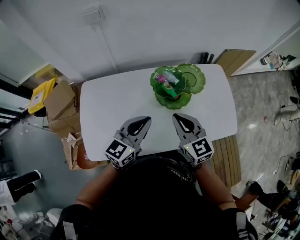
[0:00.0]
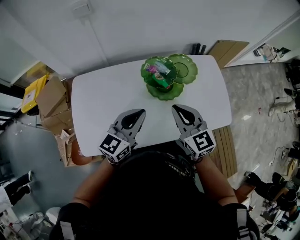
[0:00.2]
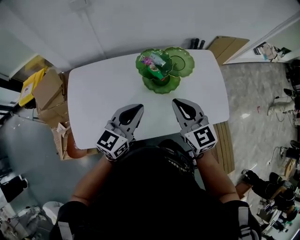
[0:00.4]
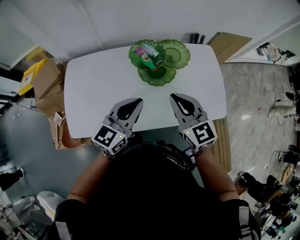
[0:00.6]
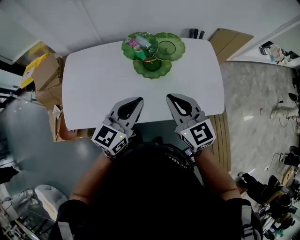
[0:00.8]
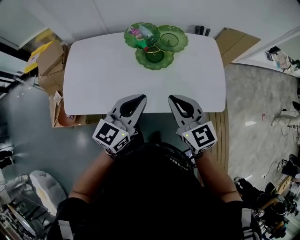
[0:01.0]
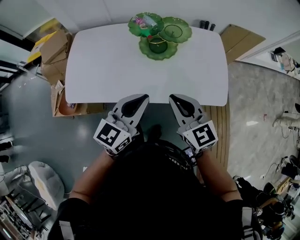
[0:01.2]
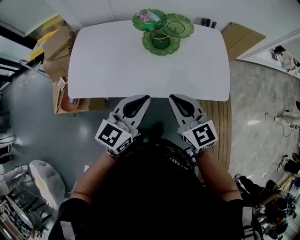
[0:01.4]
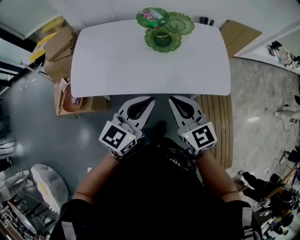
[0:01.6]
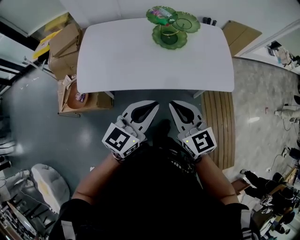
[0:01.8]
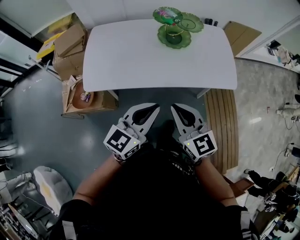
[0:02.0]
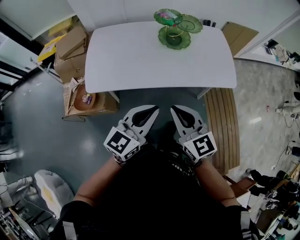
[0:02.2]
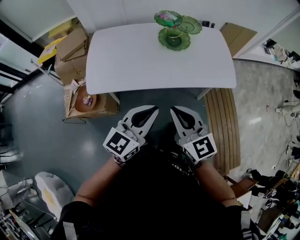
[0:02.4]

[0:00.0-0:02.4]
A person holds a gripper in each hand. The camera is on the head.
0:00.0 to 0:01.2: Both grippers travel together backward and to the right, some 25 cm.
0:01.2 to 0:02.4: The grippers both shift backward and to the left by roughly 25 cm.

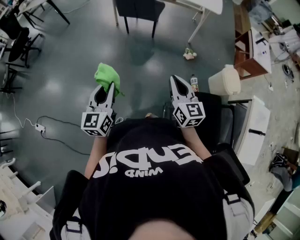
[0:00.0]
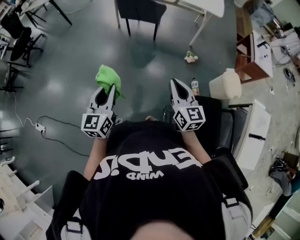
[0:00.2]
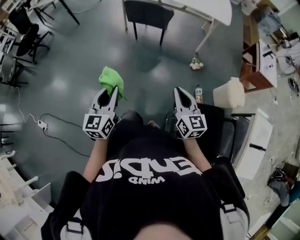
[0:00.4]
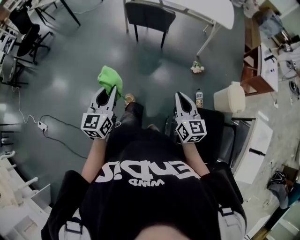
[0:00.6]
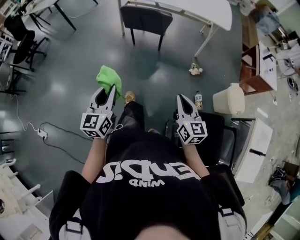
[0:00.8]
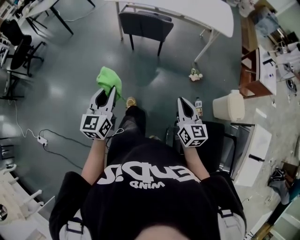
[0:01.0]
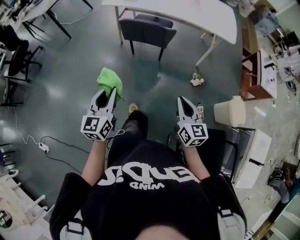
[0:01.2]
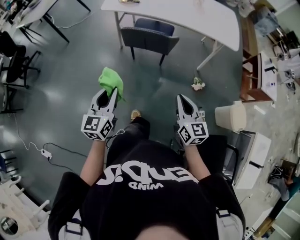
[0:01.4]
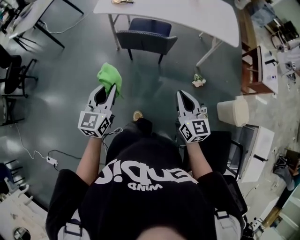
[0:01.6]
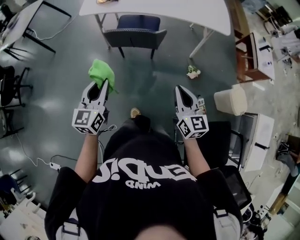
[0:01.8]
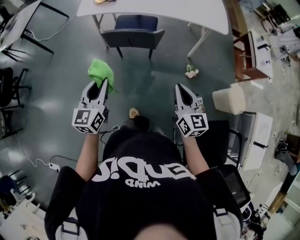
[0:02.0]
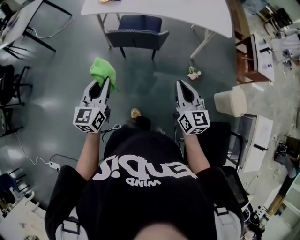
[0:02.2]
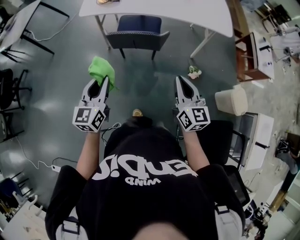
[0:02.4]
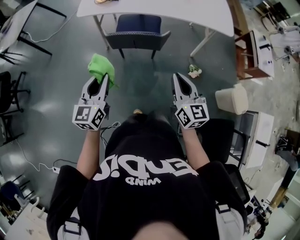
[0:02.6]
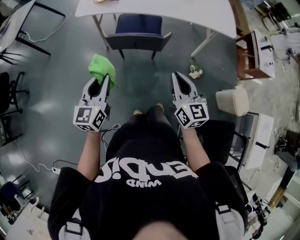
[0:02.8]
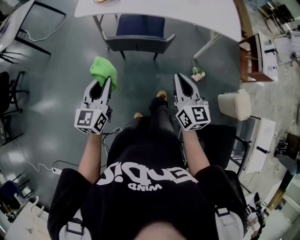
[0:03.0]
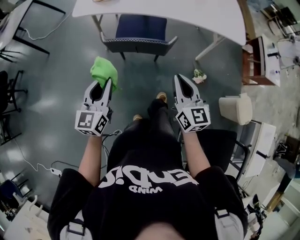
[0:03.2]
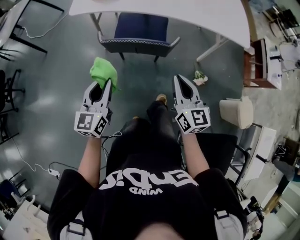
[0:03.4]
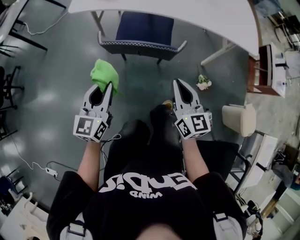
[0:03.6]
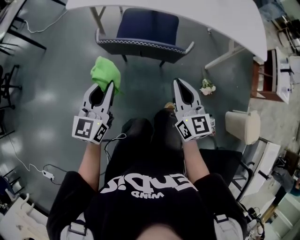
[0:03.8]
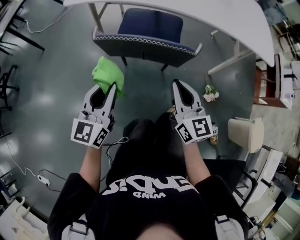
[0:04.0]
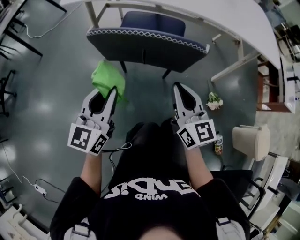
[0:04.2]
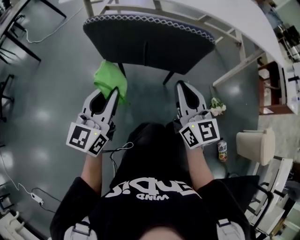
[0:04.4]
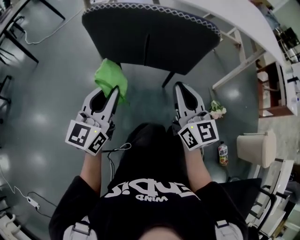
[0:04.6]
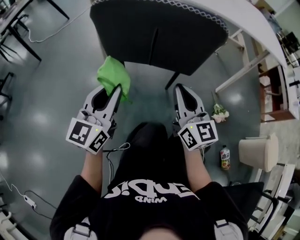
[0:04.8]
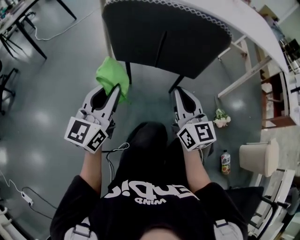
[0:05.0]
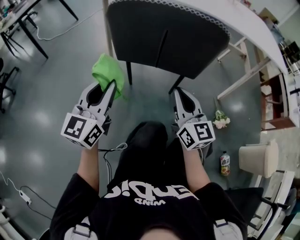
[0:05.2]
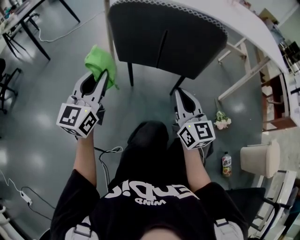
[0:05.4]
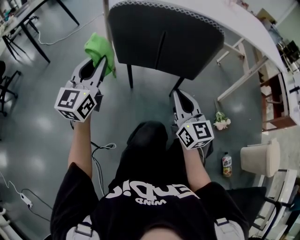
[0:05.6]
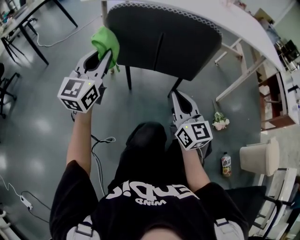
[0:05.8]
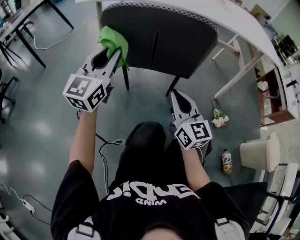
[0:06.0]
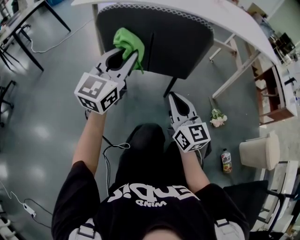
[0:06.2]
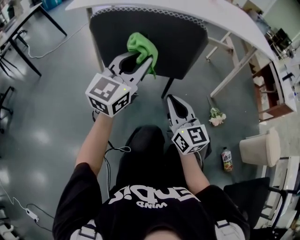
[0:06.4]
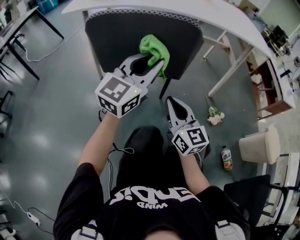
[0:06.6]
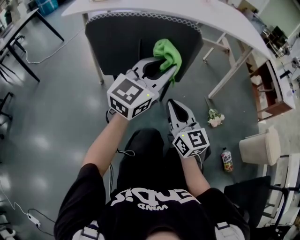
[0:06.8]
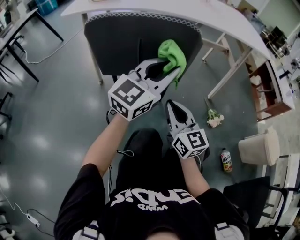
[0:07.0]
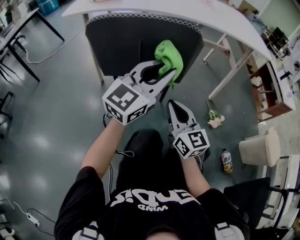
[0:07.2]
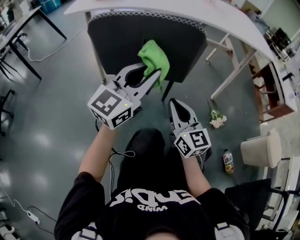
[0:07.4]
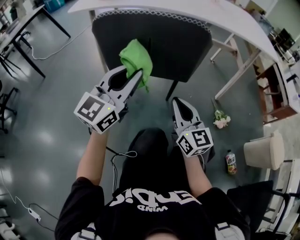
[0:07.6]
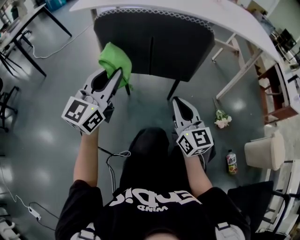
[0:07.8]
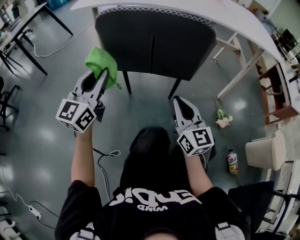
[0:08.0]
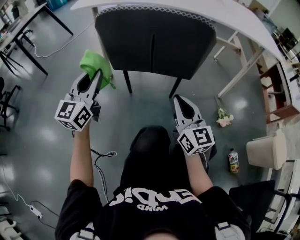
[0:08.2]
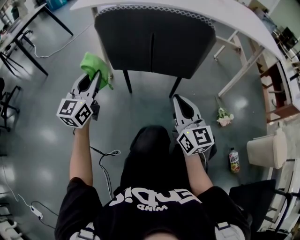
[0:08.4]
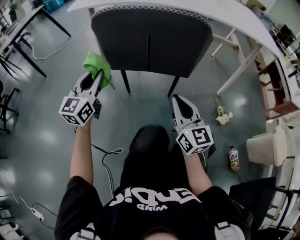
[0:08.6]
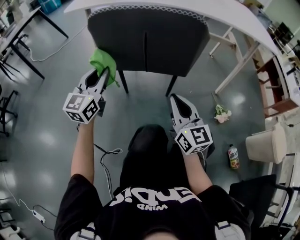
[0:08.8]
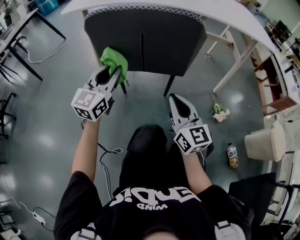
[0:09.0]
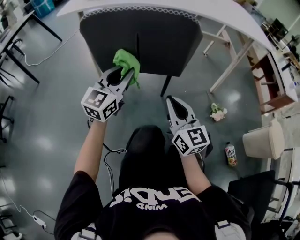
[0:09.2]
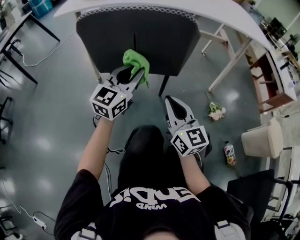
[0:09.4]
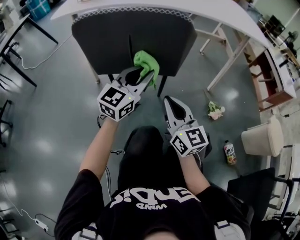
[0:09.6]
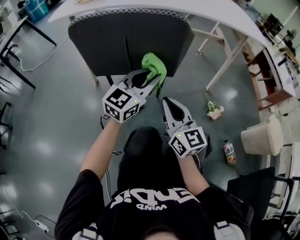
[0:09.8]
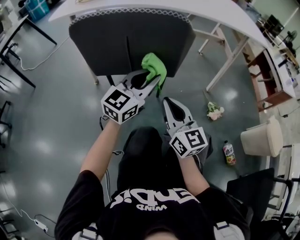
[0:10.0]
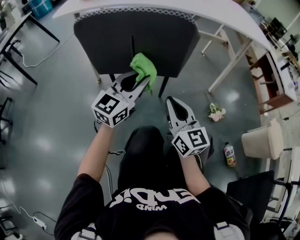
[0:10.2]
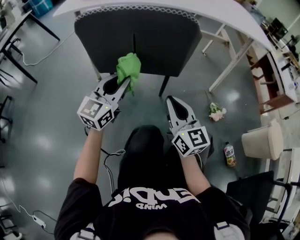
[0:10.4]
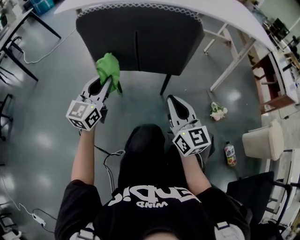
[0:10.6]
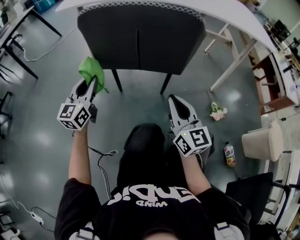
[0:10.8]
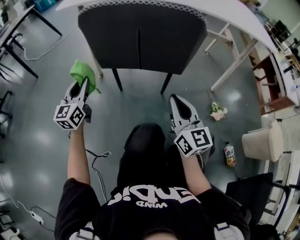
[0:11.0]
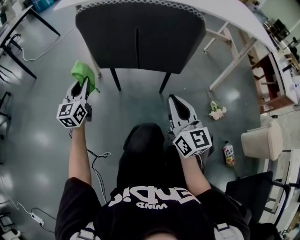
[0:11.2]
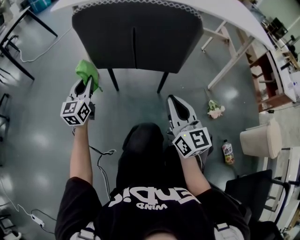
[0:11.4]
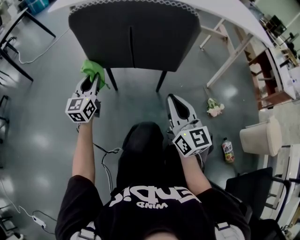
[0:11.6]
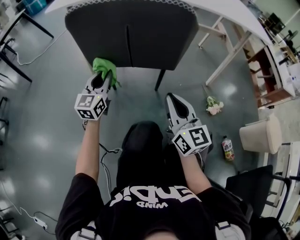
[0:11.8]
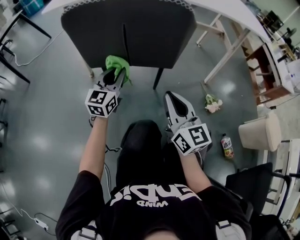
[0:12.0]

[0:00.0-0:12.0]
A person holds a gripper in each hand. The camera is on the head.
0:00.0 to 0:01.6: Both grippers travel together forward, roughly 40 cm.
0:01.6 to 0:03.0: The two grippers go roughly 15 cm forward.
0:03.0 to 0:04.4: The left gripper travels downward by some 30 cm. Meanwhile the right gripper heads downward and forward, covering roughly 35 cm.
0:04.4 to 0:06.0: The right gripper is displaced downward by approximately 5 cm. Meanwhile the left gripper heads forward, covering roughly 5 cm.
0:06.0 to 0:07.6: The left gripper moves to the right, some 10 cm.
0:07.6 to 0:09.0: The left gripper shifts approximately 5 cm downward, and travels to the left and back again, roughly 15 cm each way.
0:09.0 to 0:10.4: The left gripper reaches roughly 15 cm to the right, then returns.
0:10.4 to 0:12.0: The left gripper travels downward by roughly 5 cm, and reaches some 20 cm to the left, then returns.

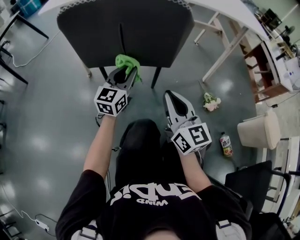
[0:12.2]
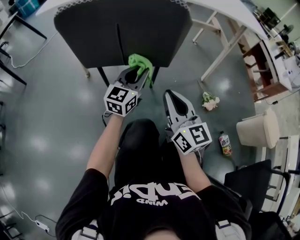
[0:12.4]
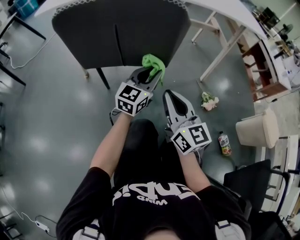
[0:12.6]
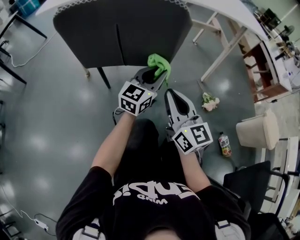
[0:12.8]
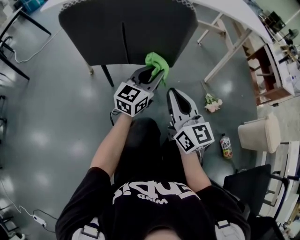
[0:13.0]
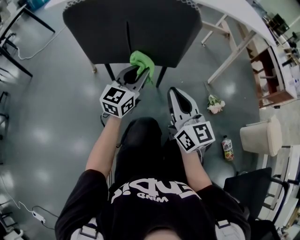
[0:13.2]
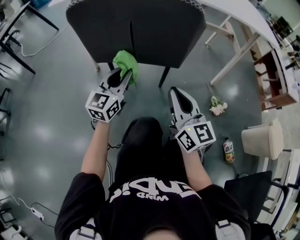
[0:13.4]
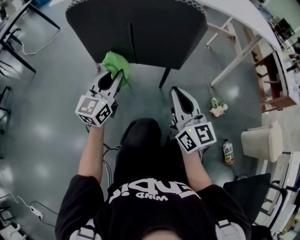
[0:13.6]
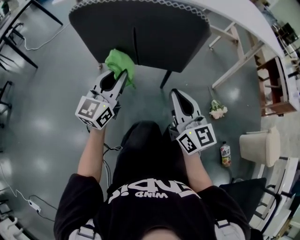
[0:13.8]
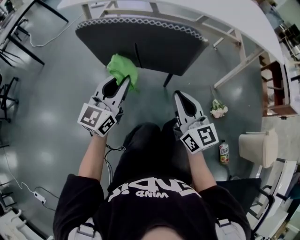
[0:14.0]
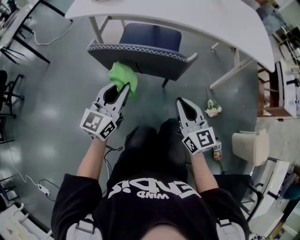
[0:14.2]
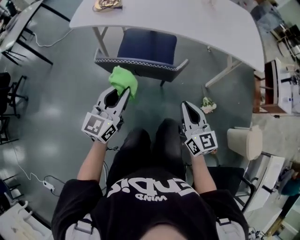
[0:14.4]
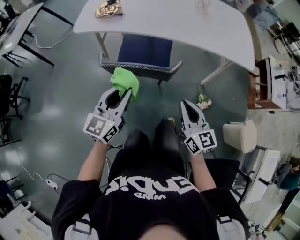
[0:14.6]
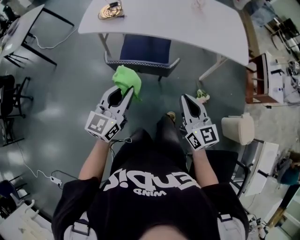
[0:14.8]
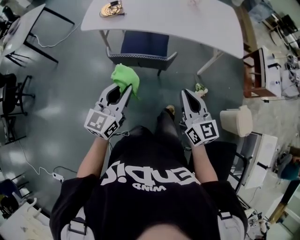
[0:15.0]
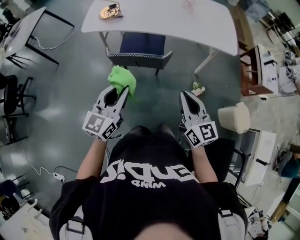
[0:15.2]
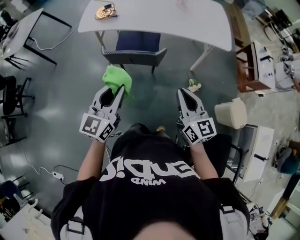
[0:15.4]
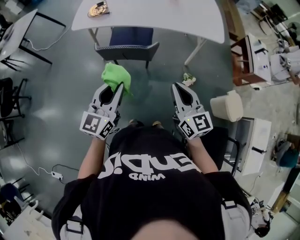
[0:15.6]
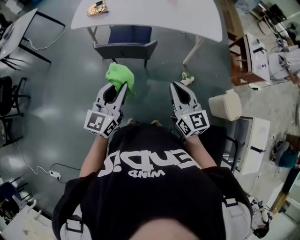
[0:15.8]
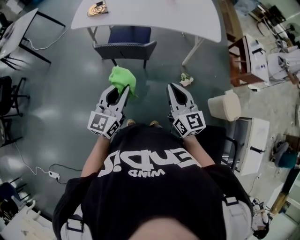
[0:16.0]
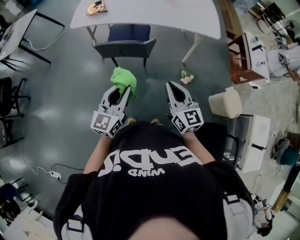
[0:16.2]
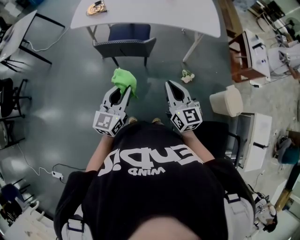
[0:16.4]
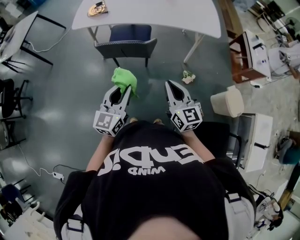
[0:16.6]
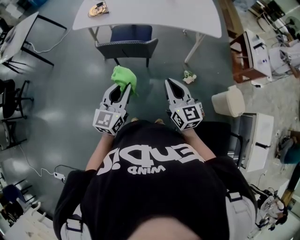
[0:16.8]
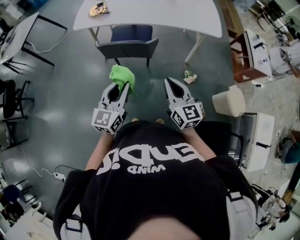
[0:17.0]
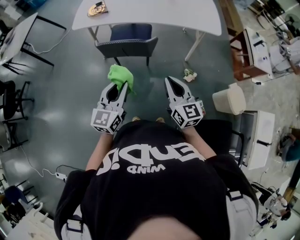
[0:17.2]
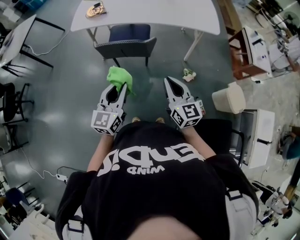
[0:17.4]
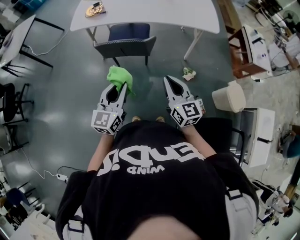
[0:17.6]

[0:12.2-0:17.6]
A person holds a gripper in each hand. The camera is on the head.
0:12.2 to 0:13.6: The left gripper moves to the left, about 5 cm.
0:13.6 to 0:15.0: The two grippers go approximately 40 cm upward.
0:15.0 to 0:16.2: The grippers both shift backward and to the right by roughly 15 cm.
0:16.2 to 0:17.6: There are only small adjustments of the grippers.

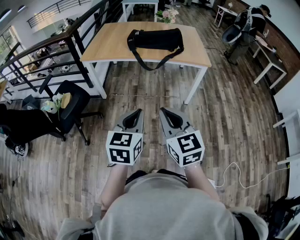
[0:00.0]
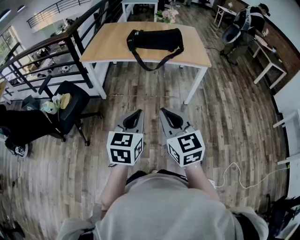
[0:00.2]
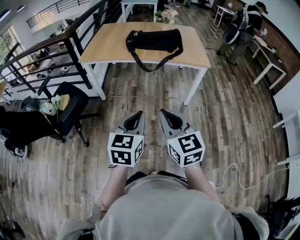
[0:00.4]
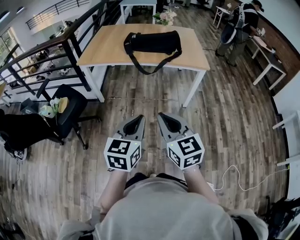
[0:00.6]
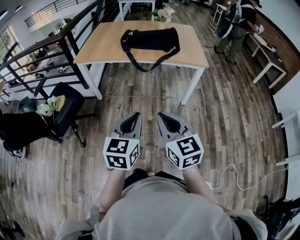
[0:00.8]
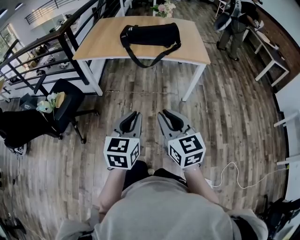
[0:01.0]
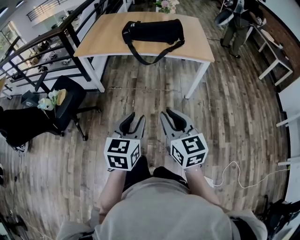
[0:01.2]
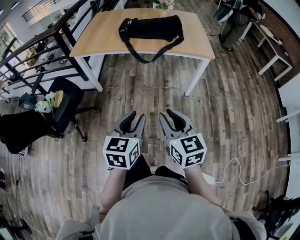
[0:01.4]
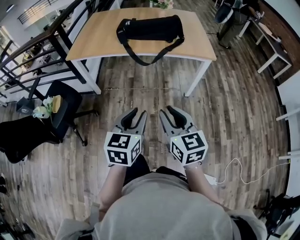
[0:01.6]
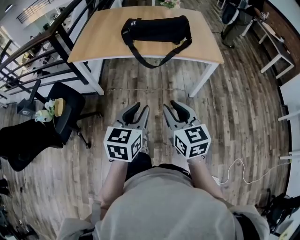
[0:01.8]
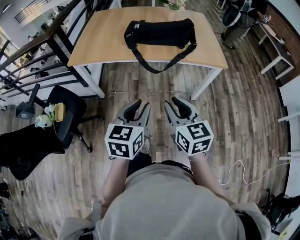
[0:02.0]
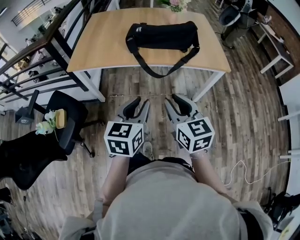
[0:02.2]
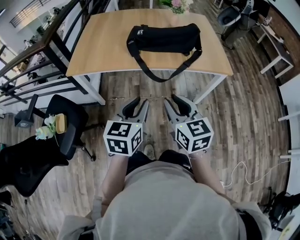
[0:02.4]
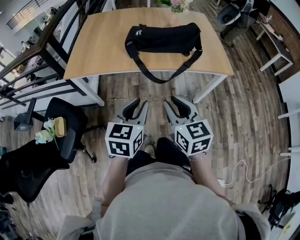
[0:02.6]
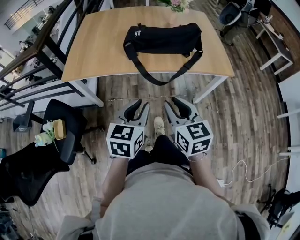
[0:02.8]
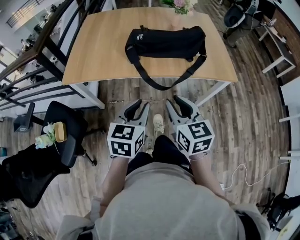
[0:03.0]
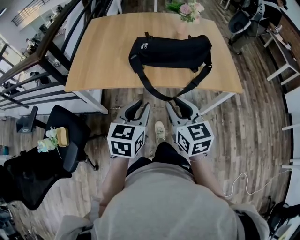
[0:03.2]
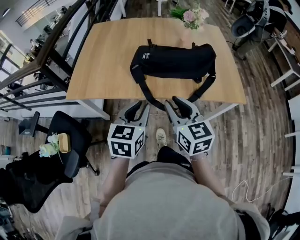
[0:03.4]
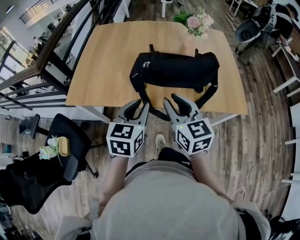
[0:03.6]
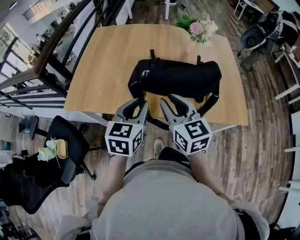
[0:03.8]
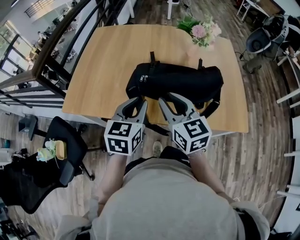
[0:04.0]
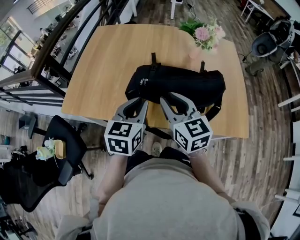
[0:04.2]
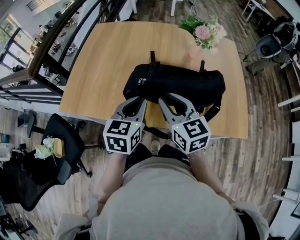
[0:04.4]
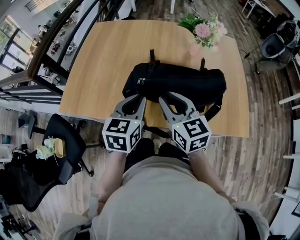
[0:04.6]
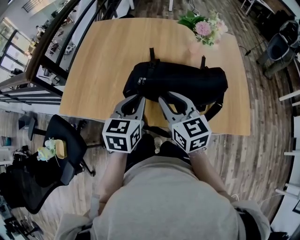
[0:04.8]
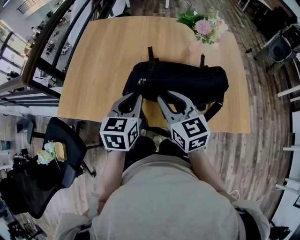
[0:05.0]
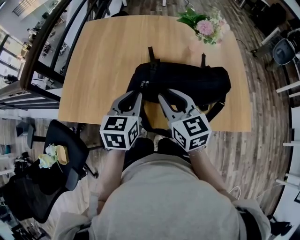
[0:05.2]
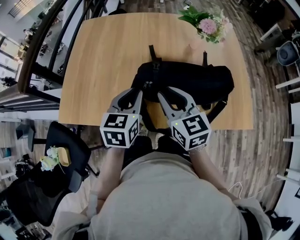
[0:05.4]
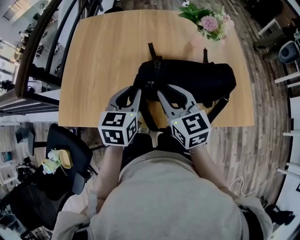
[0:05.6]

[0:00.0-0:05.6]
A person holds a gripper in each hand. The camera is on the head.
0:00.0 to 0:01.4: The right gripper shifts some 10 cm downward, forward and to the right, and opens, while the left gripper moves forward and downward, about 10 cm, and opens.
0:01.4 to 0:02.8: The two grippers go about 30 cm forward.
0:02.8 to 0:04.2: Both grippers move forward, approximately 30 cm.
0:04.2 to 0:05.6: Both grippers move forward, some 10 cm.
